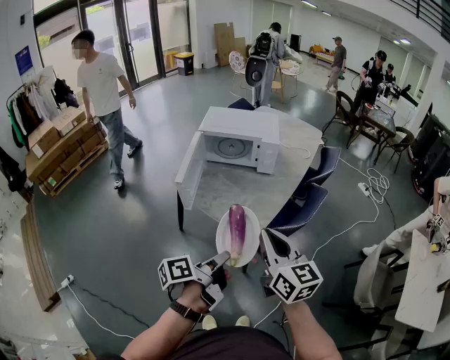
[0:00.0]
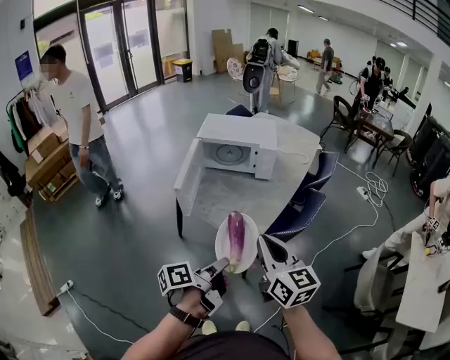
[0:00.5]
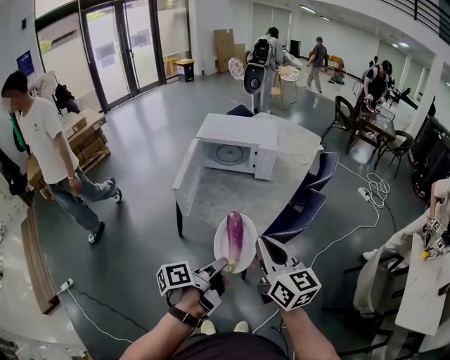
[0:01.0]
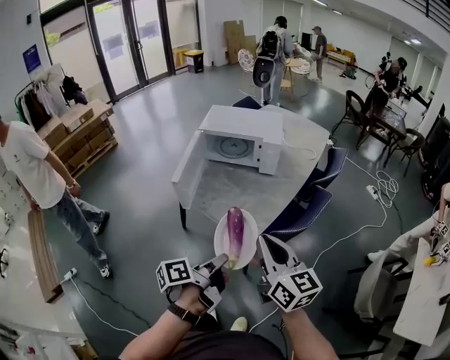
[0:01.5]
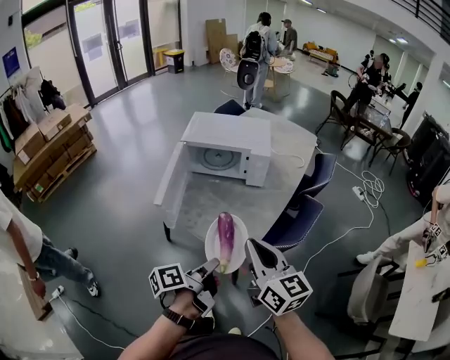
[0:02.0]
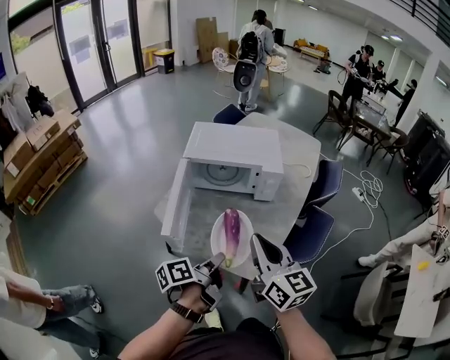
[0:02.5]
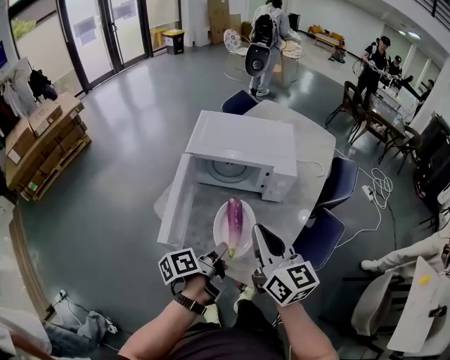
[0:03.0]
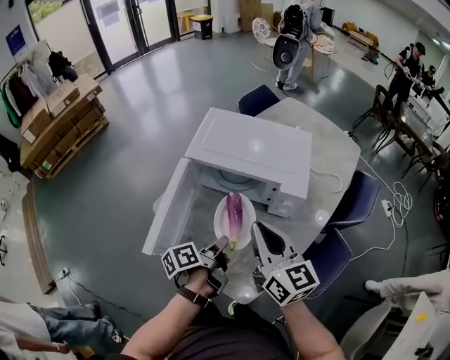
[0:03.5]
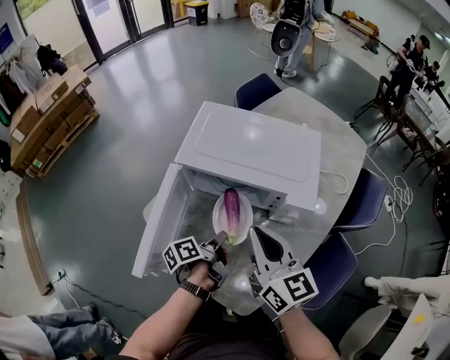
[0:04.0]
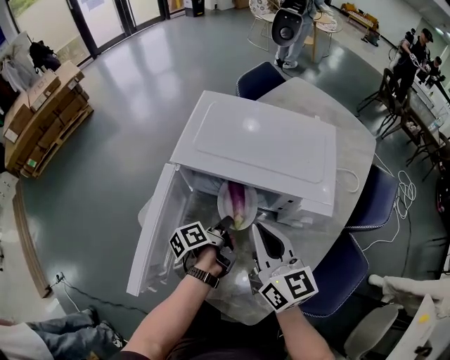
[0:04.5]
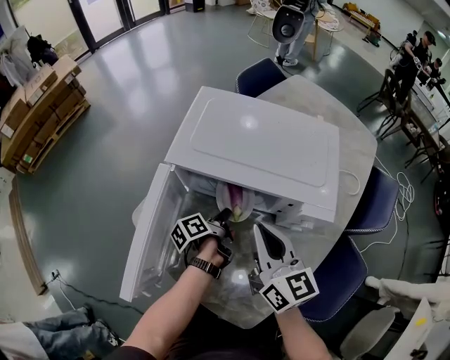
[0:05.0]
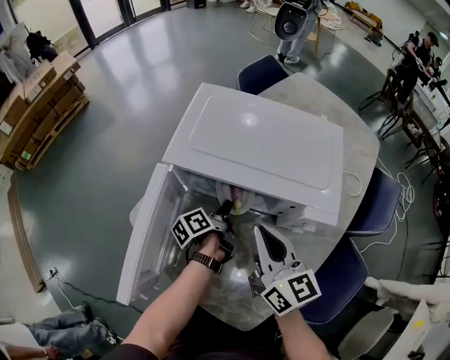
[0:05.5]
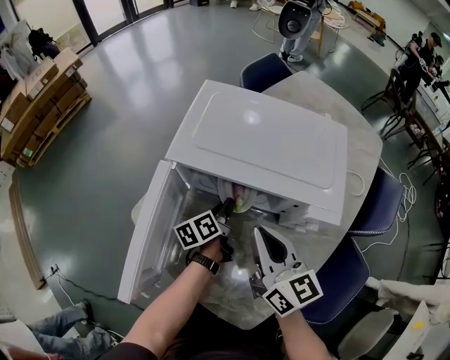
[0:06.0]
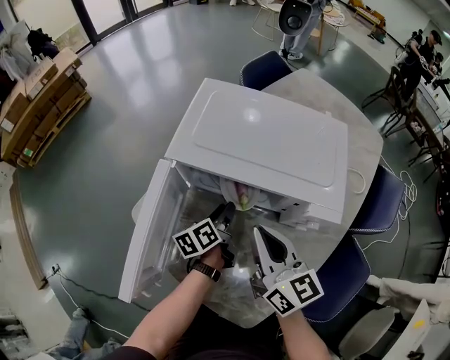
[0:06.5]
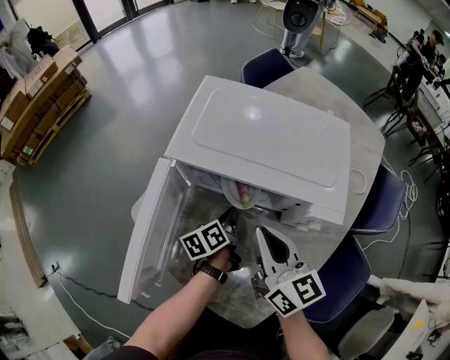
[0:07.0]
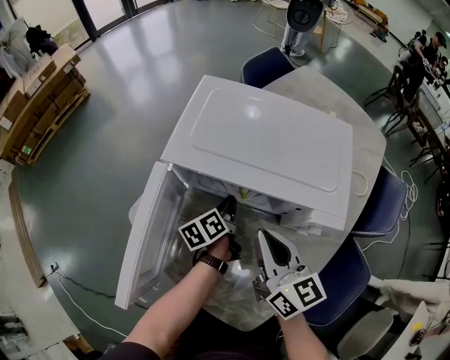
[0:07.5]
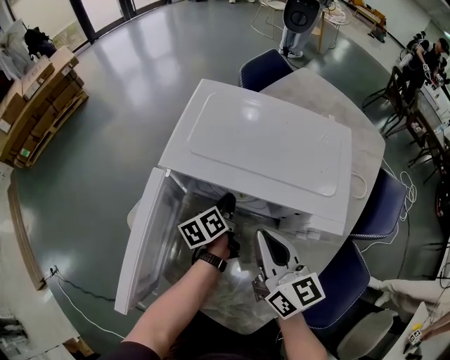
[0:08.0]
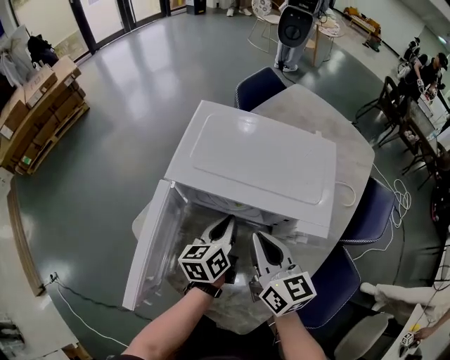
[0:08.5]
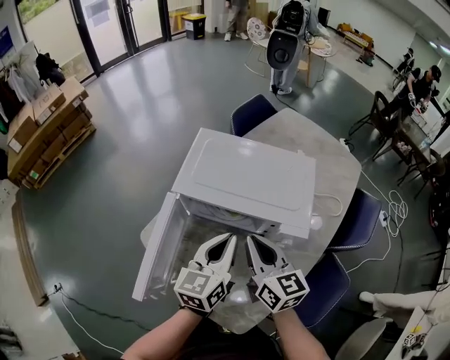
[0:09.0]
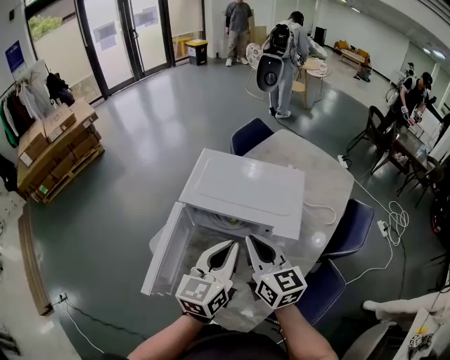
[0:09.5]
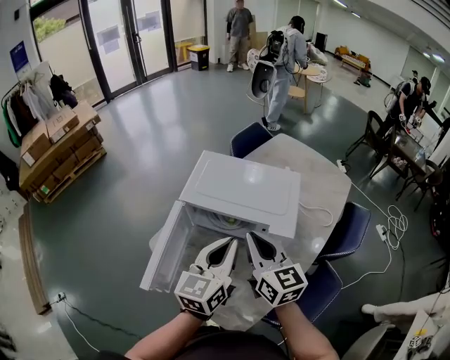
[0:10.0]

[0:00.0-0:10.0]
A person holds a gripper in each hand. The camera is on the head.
0.0 to 2.0 s: Both grippers travel together forward, some 10 cm.
2.0 to 4.0 s: The two grippers go approximately 35 cm forward.
4.0 to 6.0 s: The left gripper moves forward and downward, approximately 15 cm, and changes its angle by approximately 20 degrees; the right gripper heads downward and forward, covering about 10 cm.
6.0 to 8.0 s: The left gripper opens, then closes again.
8.0 to 10.0 s: The right gripper travels upward by about 20 cm; the left gripper goes approximately 40 cm upward and backward, and rotates around the line of its fingers by approximately 40 degrees, clockwise from behind.

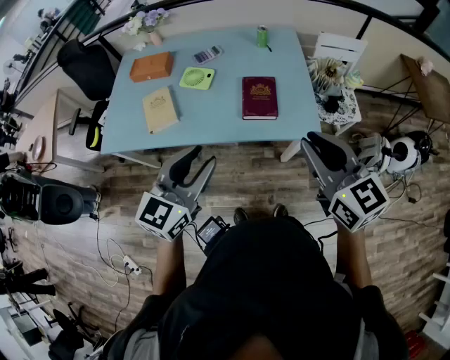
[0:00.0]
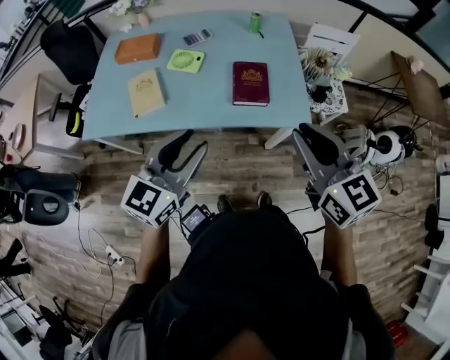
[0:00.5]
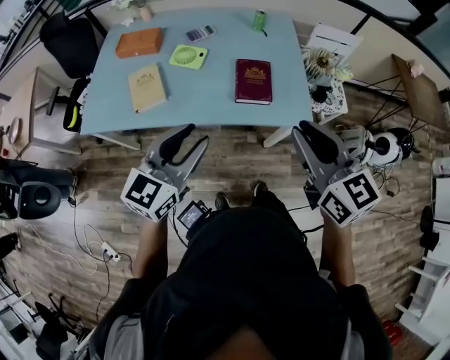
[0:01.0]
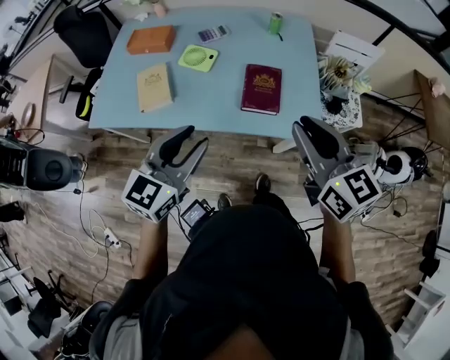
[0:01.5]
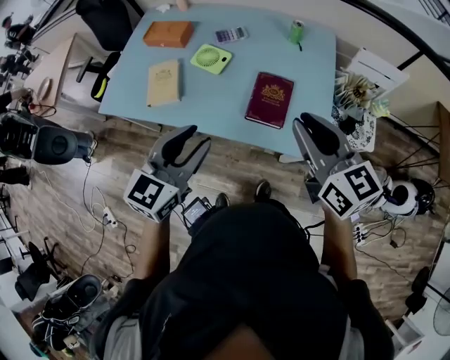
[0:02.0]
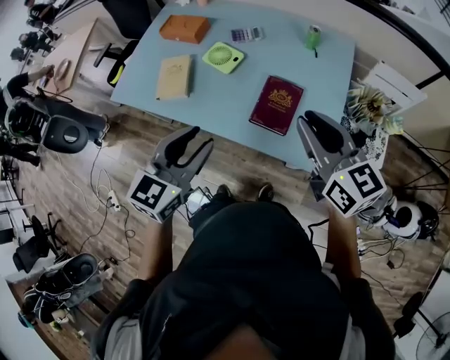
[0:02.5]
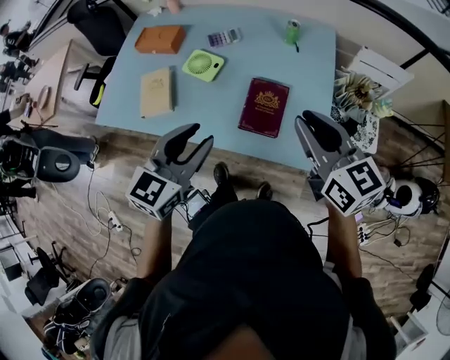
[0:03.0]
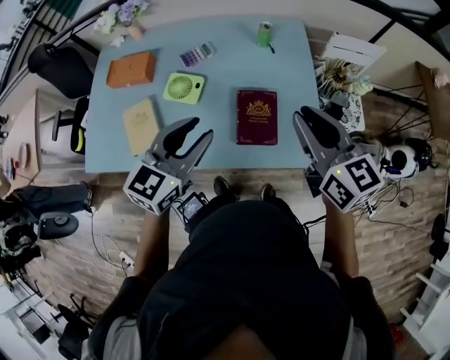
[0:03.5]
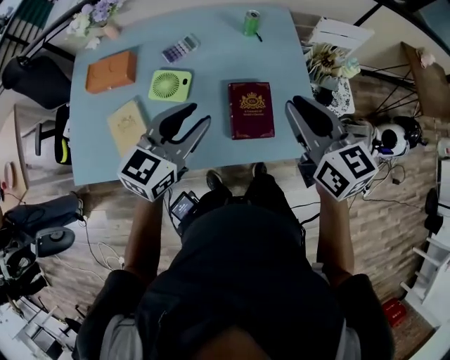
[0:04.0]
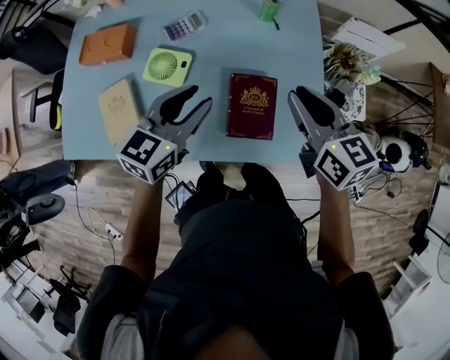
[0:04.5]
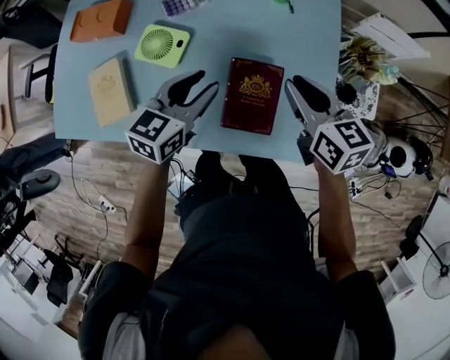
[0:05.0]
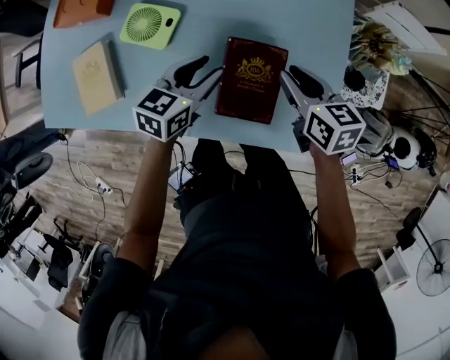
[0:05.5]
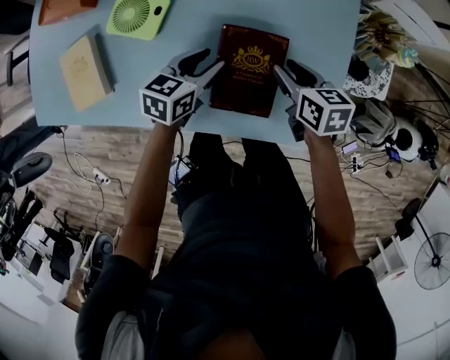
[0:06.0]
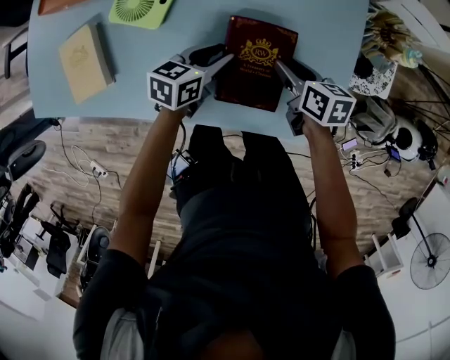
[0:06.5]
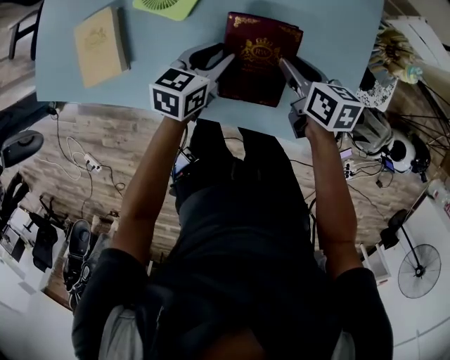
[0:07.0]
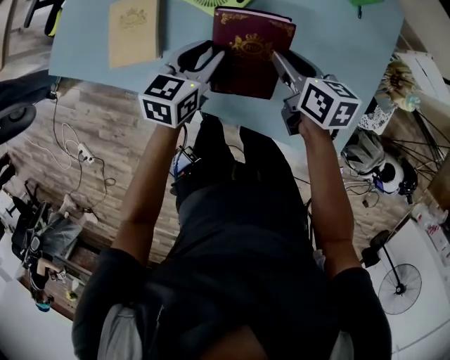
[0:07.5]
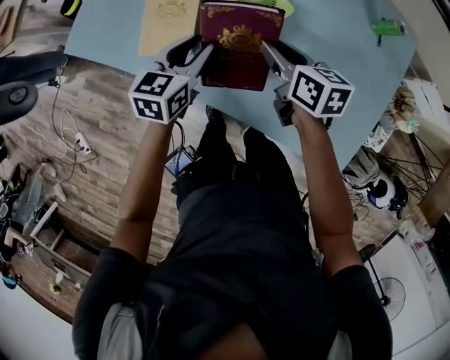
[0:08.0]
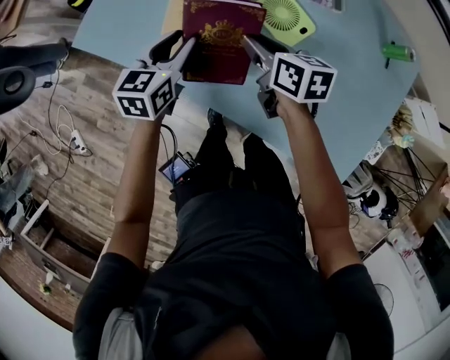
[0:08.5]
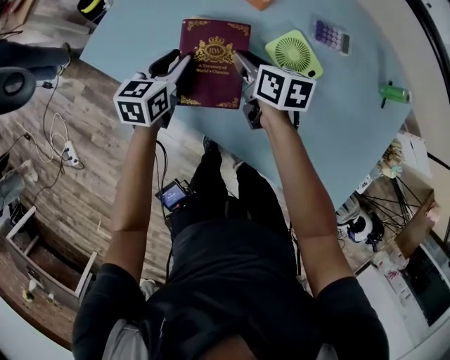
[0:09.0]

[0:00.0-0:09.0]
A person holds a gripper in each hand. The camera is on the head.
0.0 to 2.0 s: The left gripper shifts approximately 10 cm forward. The right gripper goes some 15 cm forward.
2.0 to 4.5 s: The right gripper moves approximately 25 cm, while the left gripper ends up approximately 30 cm from where it was.
4.5 to 7.0 s: The grippers both shift downward by about 25 cm. The left gripper turns by approximately 30 degrees. Meanwhile the right gripper rotates roughly 30 degrees.
7.0 to 9.0 s: Both grippers are carried about 40 cm. The right gripper changes its angle by some 20 degrees. The left gripper turns by approximately 30 degrees.

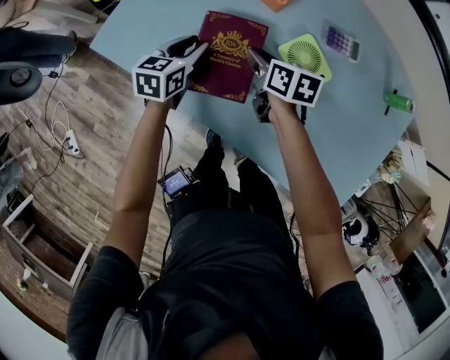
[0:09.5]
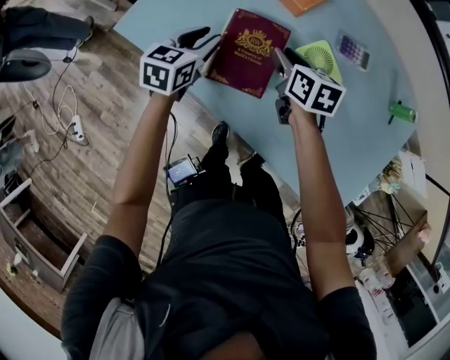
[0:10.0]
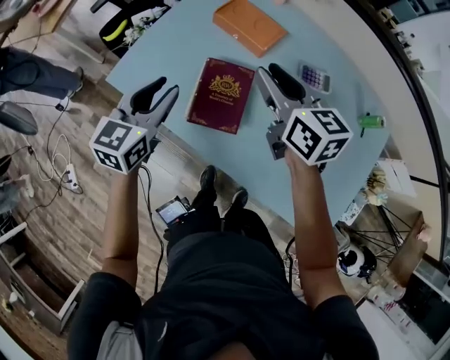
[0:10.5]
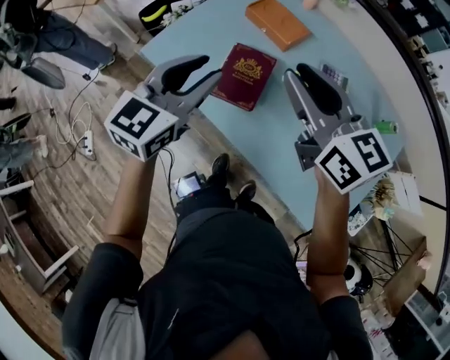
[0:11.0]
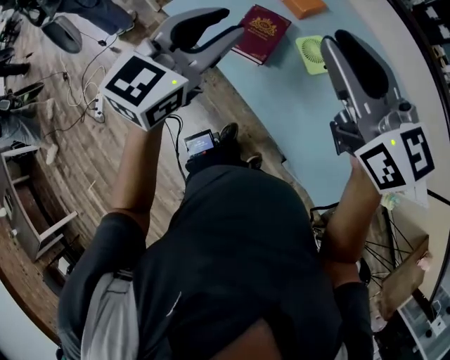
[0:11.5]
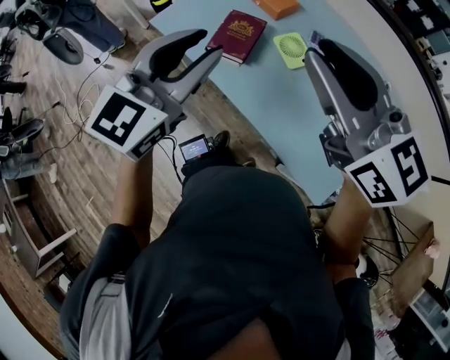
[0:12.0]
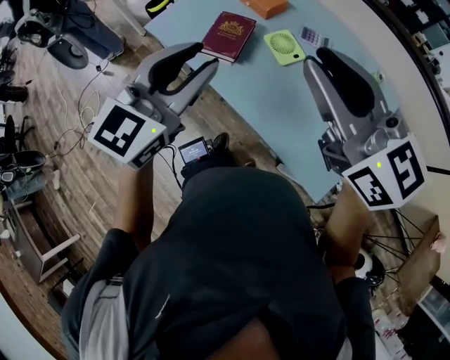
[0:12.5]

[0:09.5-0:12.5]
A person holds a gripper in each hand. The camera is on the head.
9.5 to 11.0 s: The left gripper moves upward and backward, approximately 35 cm, and swivels roughly 30 degrees, while the right gripper heads upward, covering approximately 35 cm, and angles its fingers upward, by roughly 30 degrees.
11.0 to 12.5 s: Both grippers travel together backward and upward, approximately 25 cm.

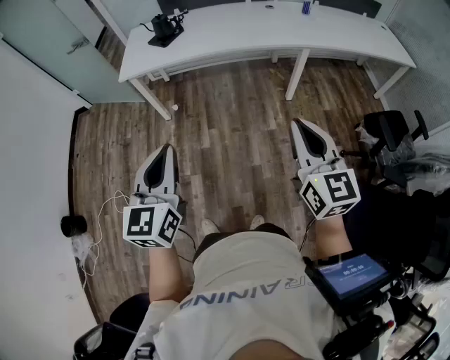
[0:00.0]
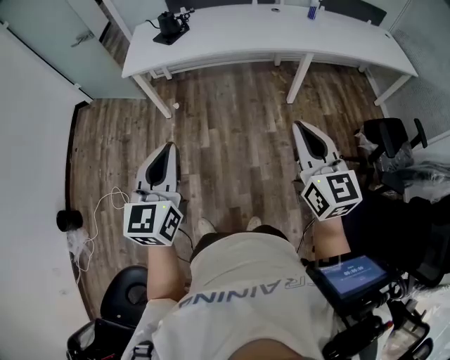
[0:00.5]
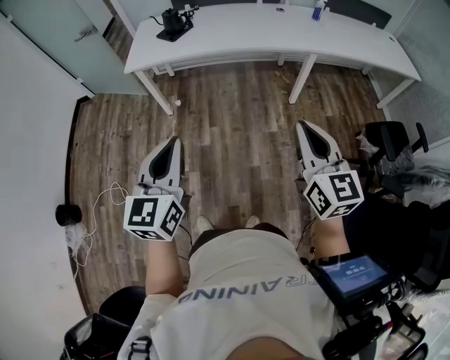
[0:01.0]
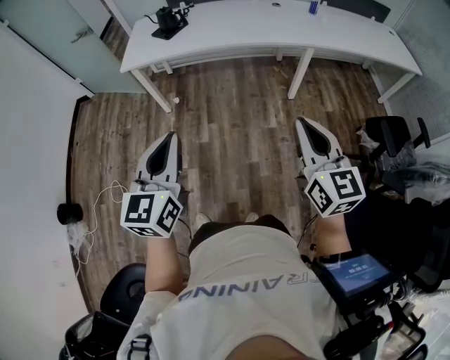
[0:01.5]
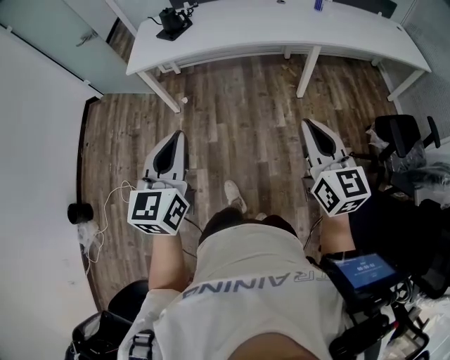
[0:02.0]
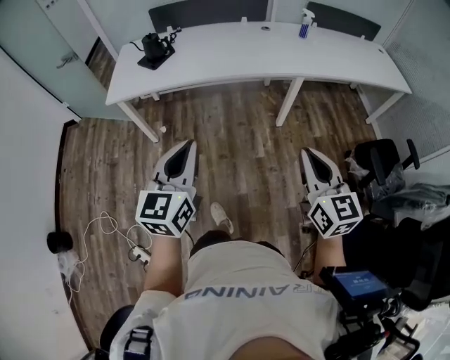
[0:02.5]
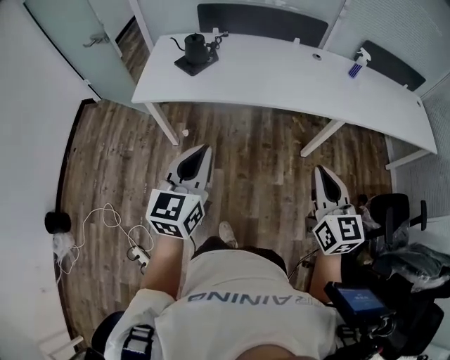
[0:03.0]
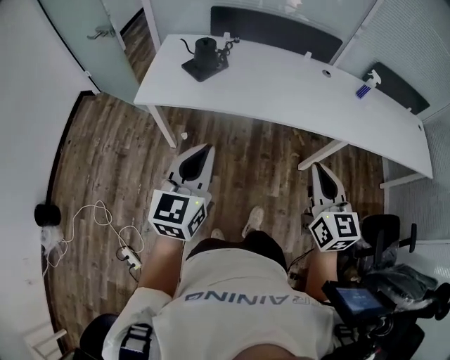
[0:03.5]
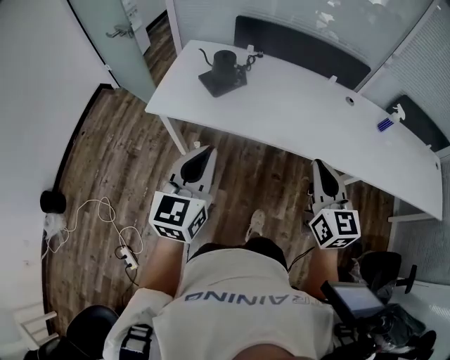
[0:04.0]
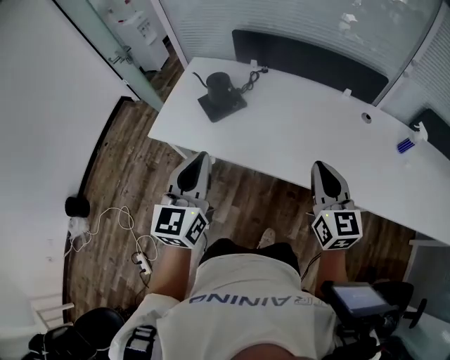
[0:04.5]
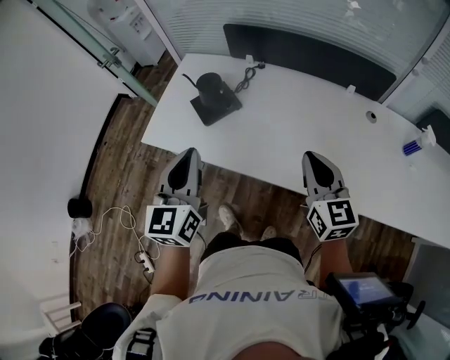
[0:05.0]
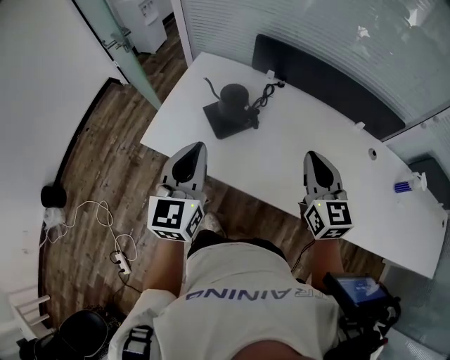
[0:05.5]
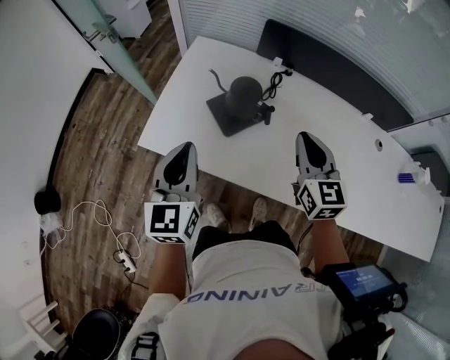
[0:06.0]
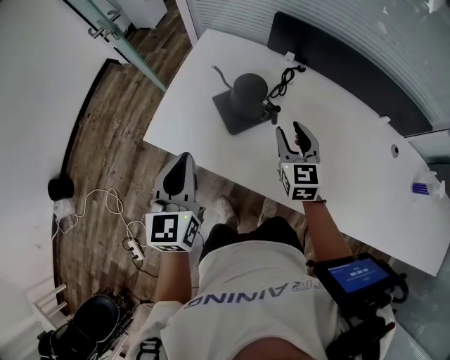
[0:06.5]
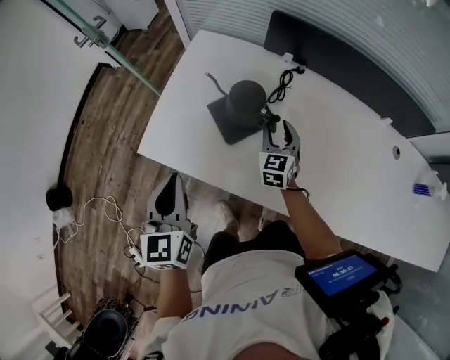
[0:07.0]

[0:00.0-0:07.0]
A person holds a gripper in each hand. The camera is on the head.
0.0 to 2.0 s: The right gripper shifts by roughly 5 cm. Meanwhile the left gripper goes some 5 cm to the right.
2.0 to 3.5 s: The grippers both shift forward by some 35 cm.
3.5 to 5.0 s: Both grippers move forward, about 35 cm. The left gripper rotates approximately 20 degrees.
5.0 to 7.0 s: The left gripper travels to the left, forward and downward by about 30 cm; the right gripper shifts some 50 cm forward, downward and to the left, swivels approximately 30 degrees, and opens up.
